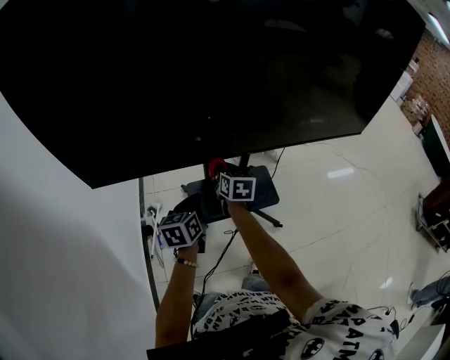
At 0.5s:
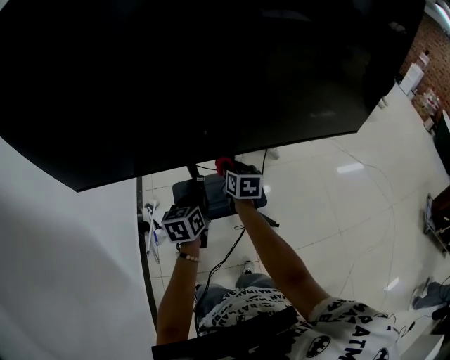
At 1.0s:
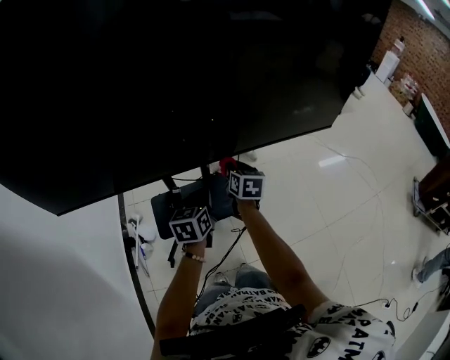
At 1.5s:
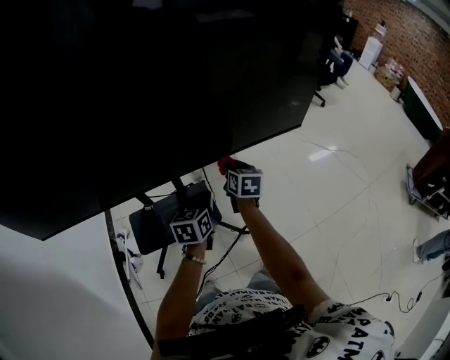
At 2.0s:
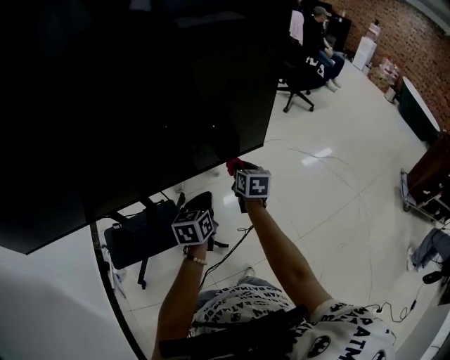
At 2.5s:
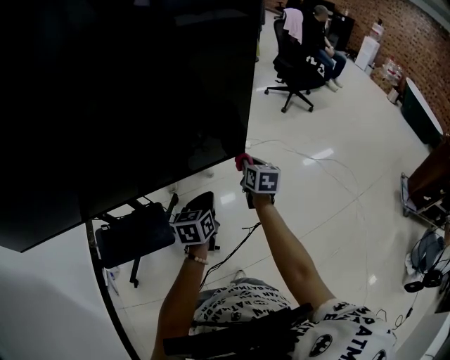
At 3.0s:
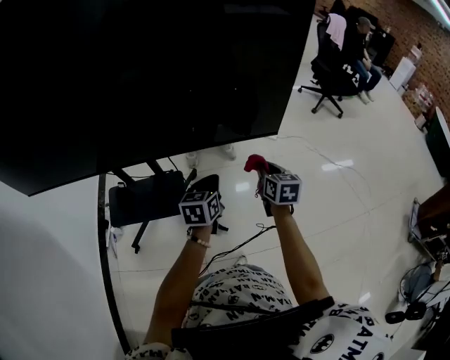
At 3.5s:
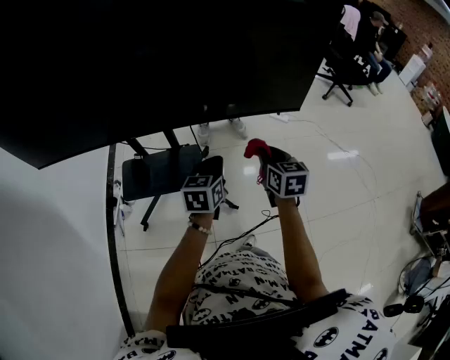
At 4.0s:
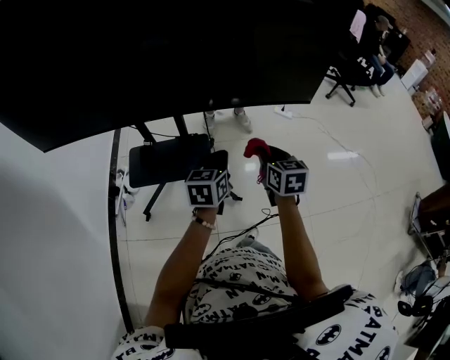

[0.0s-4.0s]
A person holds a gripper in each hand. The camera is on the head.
0.0s to 2.0s: Both grippers are carried to the right, approximately 50 cm.
2.0s to 4.0s: The right gripper heads backward, covering roughly 20 cm, and swivels roughly 20 degrees. The left gripper heads backward and to the left, covering some 15 cm.

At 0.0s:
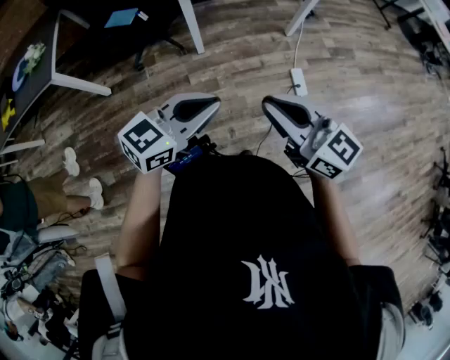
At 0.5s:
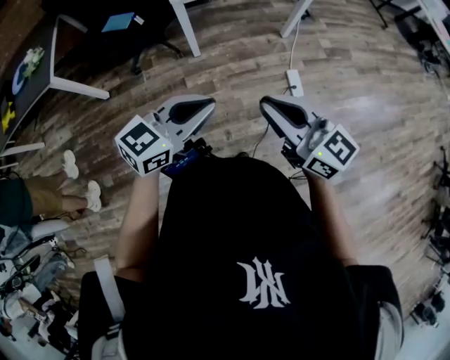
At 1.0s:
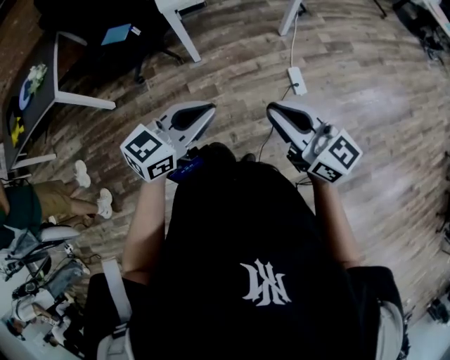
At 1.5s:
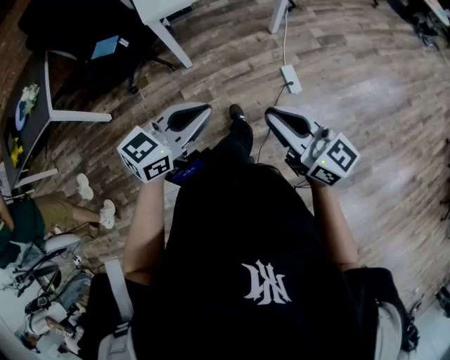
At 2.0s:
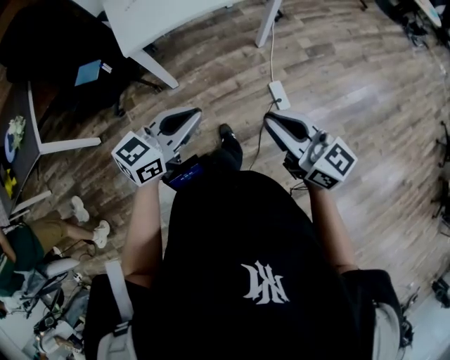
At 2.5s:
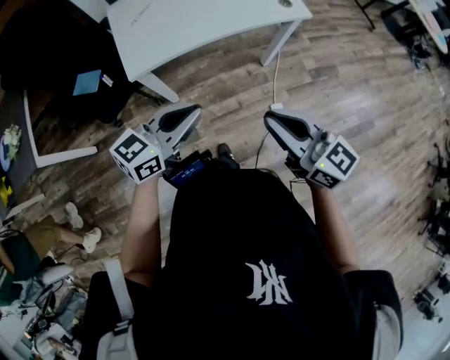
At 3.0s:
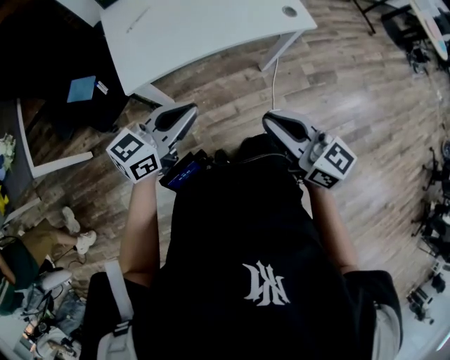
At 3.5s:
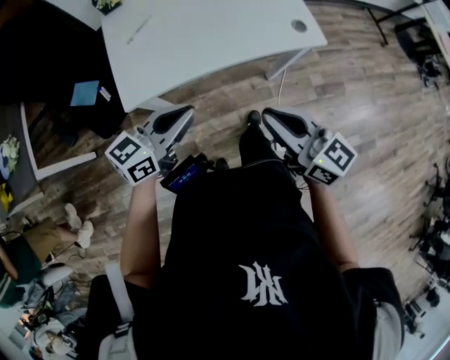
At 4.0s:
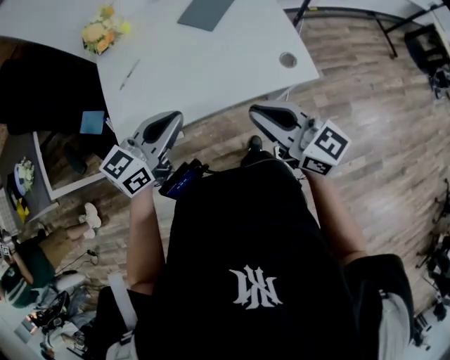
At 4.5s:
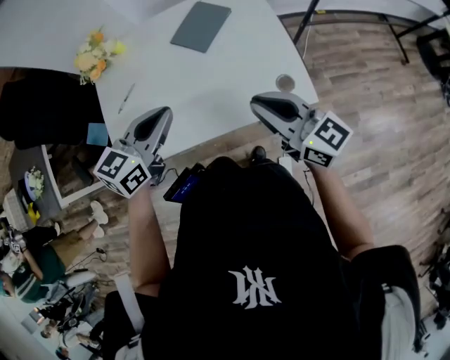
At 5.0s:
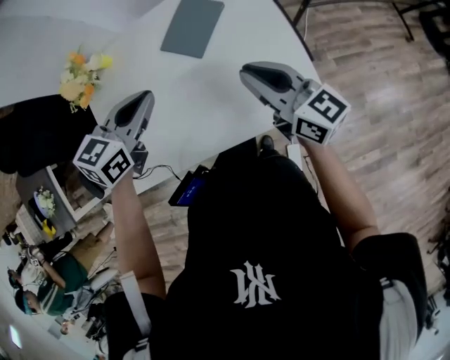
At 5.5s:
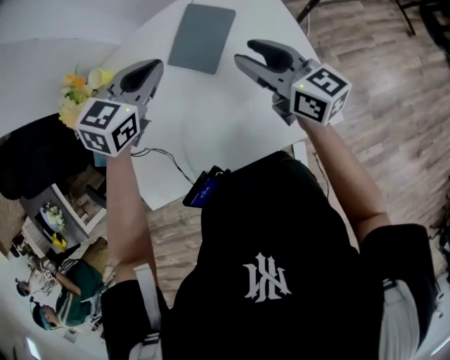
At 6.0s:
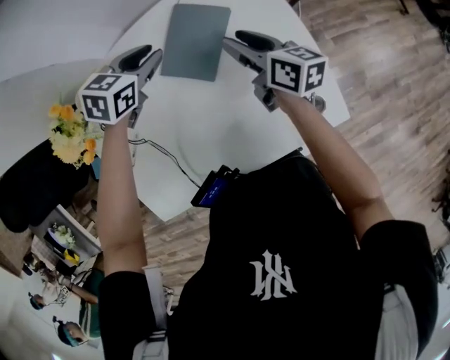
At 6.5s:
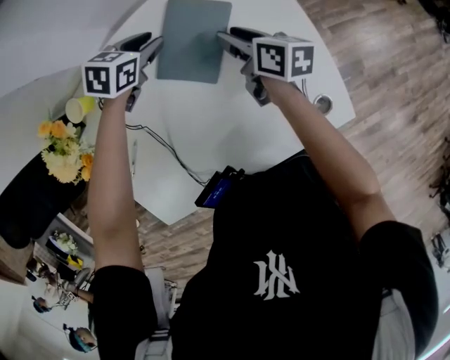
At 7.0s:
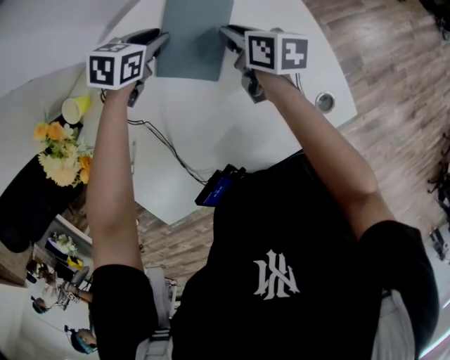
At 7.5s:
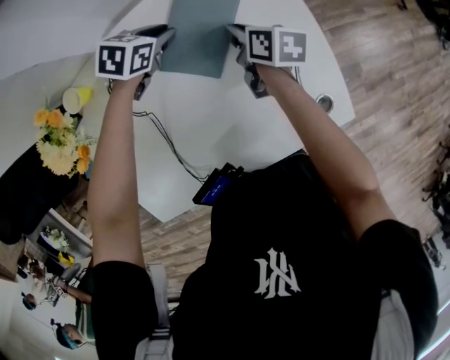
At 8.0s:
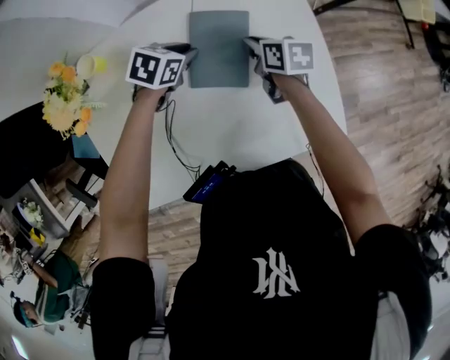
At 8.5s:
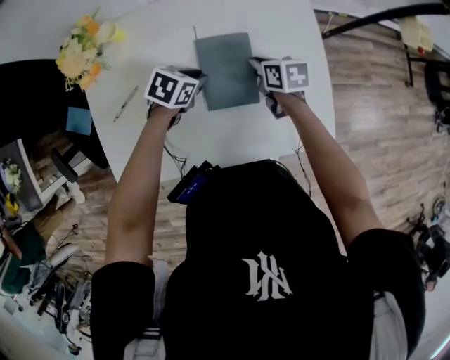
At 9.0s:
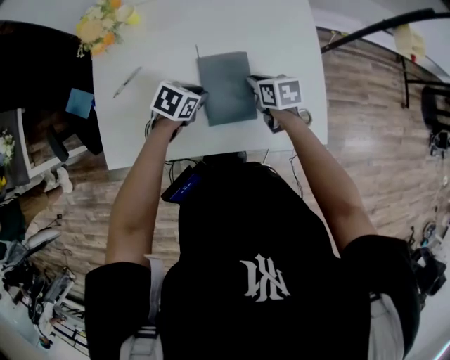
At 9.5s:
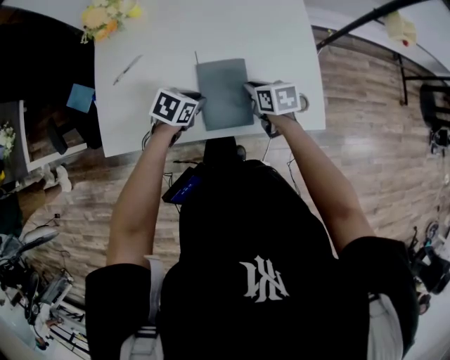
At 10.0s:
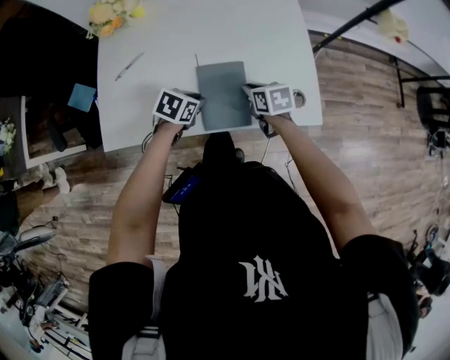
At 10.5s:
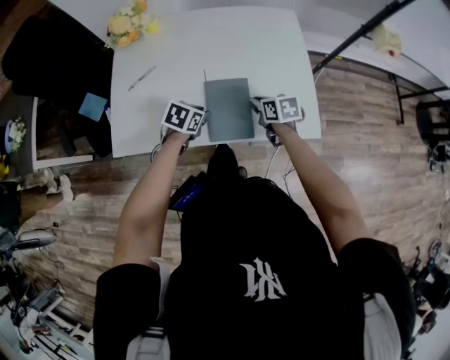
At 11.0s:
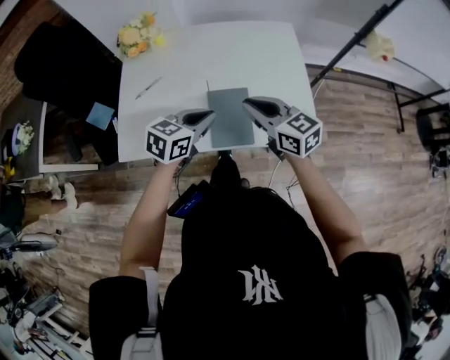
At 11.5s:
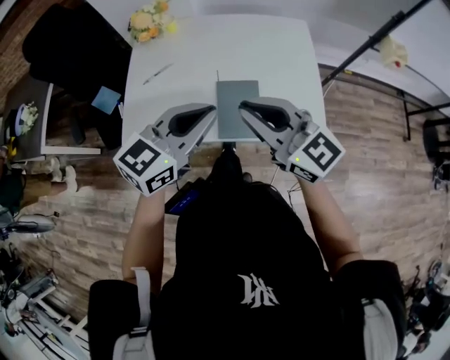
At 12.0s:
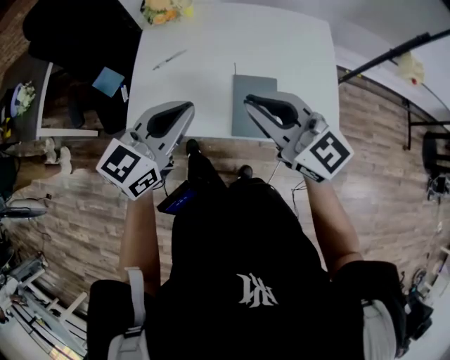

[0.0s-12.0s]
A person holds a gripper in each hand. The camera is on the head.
0.0s to 2.0s: Both grippers travel together forward and to the right, about 20 cm.
2.0s to 4.0s: The two grippers travel together, forward, roughly 50 cm.
4.0s to 6.0s: The two grippers travel together, forward, roughly 50 cm. The left gripper tilts its fingers approximately 30 degrees downward, and opens its fingers; the right gripper turns by roughly 40 degrees, and opens.
6.0s to 8.0s: Both grippers travel together downward, some 10 cm. The right gripper rotates about 30 degrees, and closes.
8.0s to 10.0s: Both grippers travel together backward, roughly 25 cm. The right gripper swivels approximately 20 degrees.
10.0s to 12.0s: Both grippers move upward, roughly 30 cm. The right gripper tilts its fingers approximately 50 degrees upward. Meanwhile the left gripper angles its fingers upward, by approximately 50 degrees.

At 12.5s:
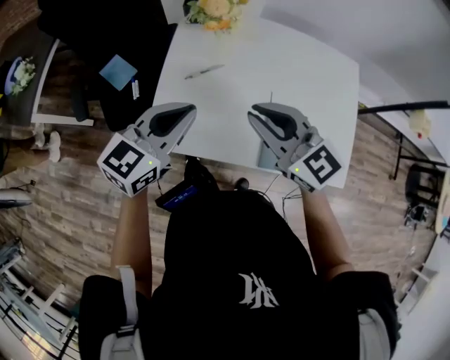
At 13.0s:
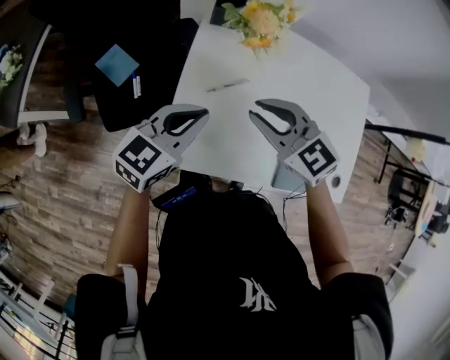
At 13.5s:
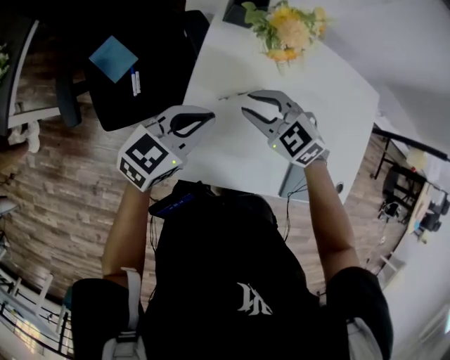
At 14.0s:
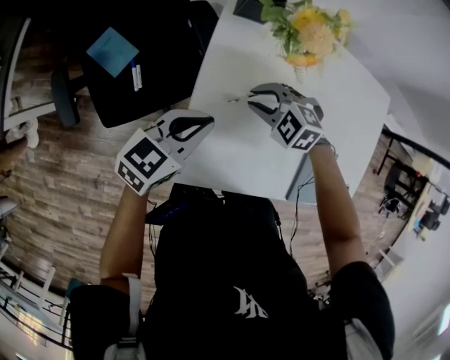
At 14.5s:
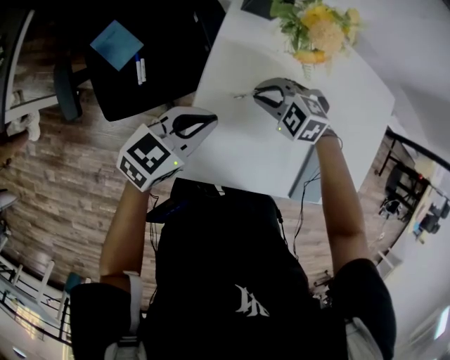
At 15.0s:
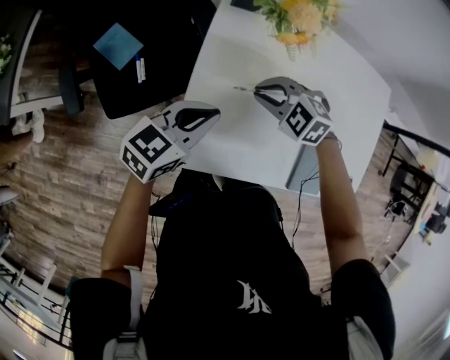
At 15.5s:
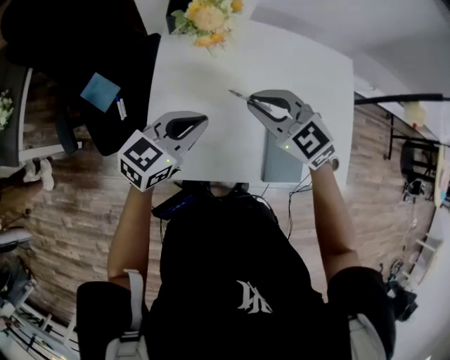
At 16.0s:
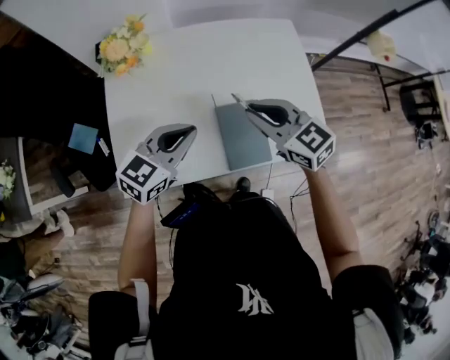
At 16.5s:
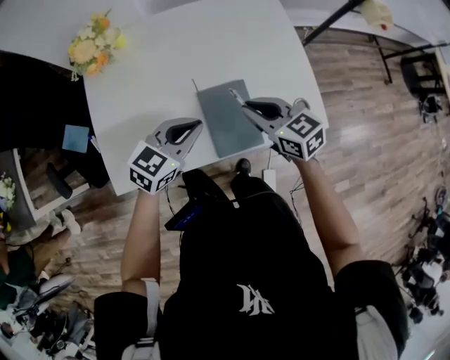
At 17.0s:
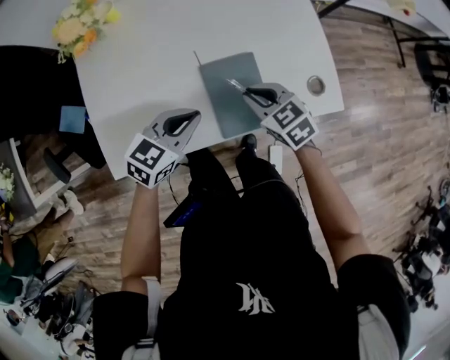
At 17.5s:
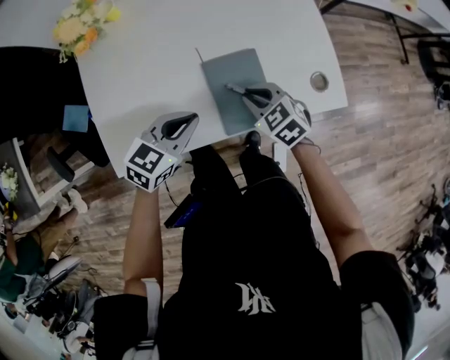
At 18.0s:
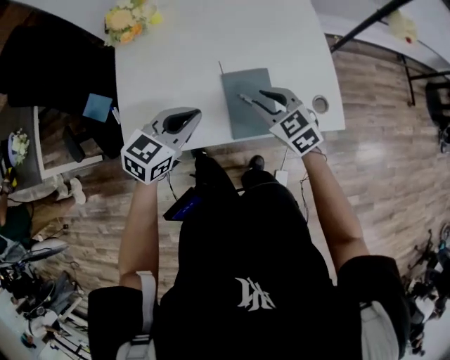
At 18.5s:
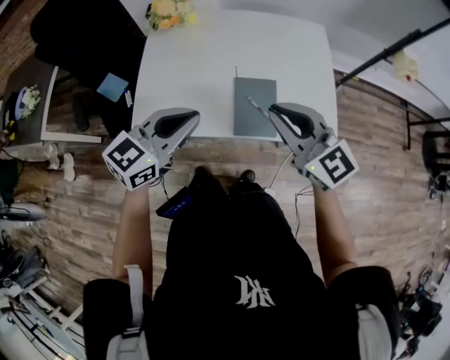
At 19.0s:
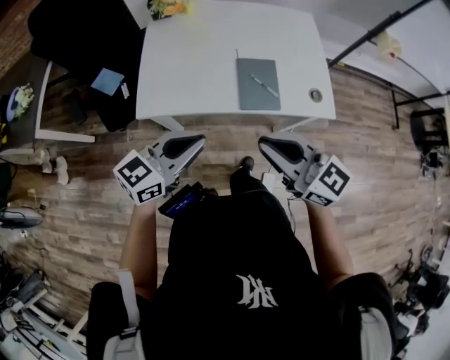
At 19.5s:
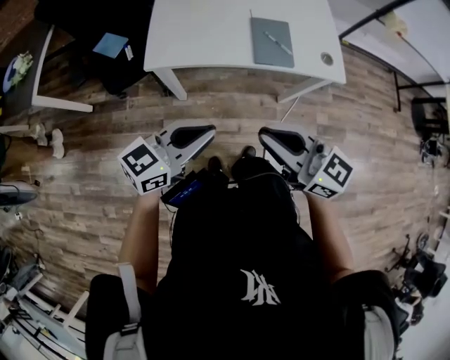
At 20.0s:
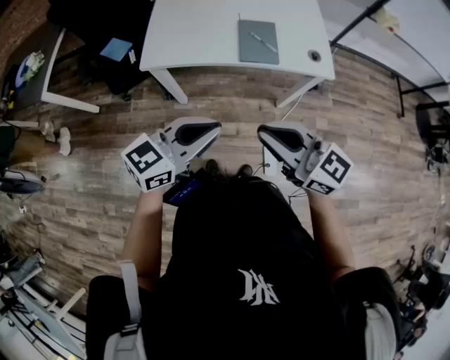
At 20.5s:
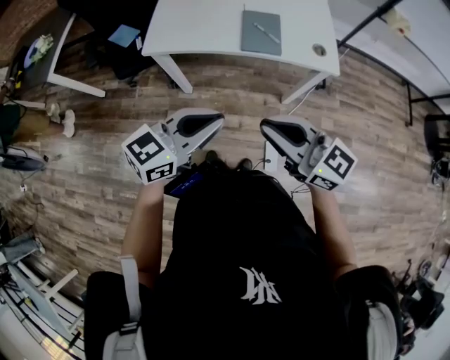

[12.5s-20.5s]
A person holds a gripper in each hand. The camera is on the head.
12.5s to 14.5s: The left gripper is displaced downward by approximately 15 cm. Meanwhile the right gripper travels downward by roughly 25 cm, and tilts its fingers some 50 degrees downward.
14.5s to 16.5s: The right gripper changes place by roughly 40 cm, and angles its fingers upward, by about 30 degrees. Meanwhile the left gripper goes upward and returns, some 10 cm each way, and turns by about 20 degrees.
16.5s to 18.5s: Both grippers move upward and backward, approximately 20 cm. The right gripper changes its angle by about 30 degrees.
18.5s to 20.5s: Both grippers travel together backward, some 30 cm. The right gripper changes its angle by about 20 degrees.

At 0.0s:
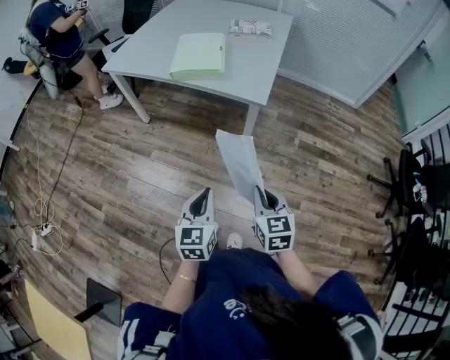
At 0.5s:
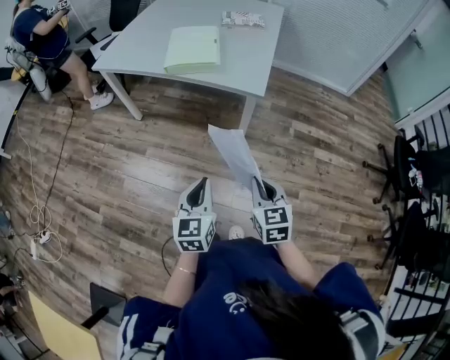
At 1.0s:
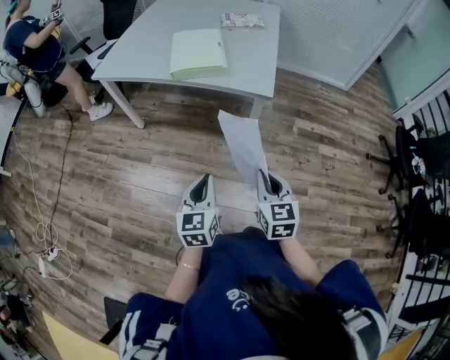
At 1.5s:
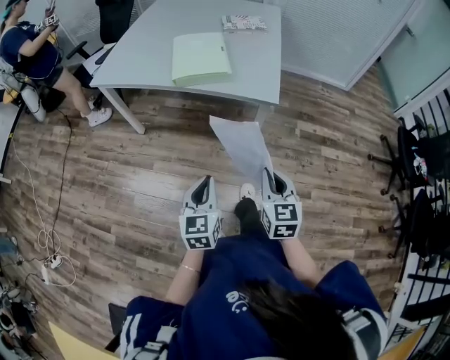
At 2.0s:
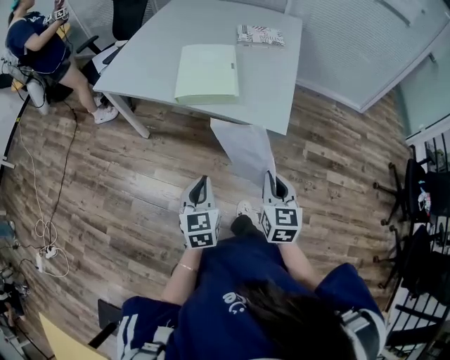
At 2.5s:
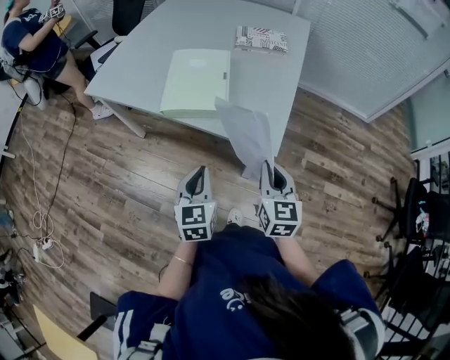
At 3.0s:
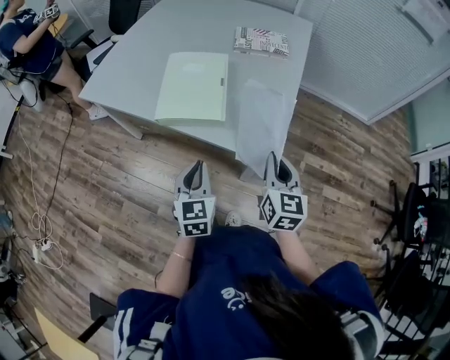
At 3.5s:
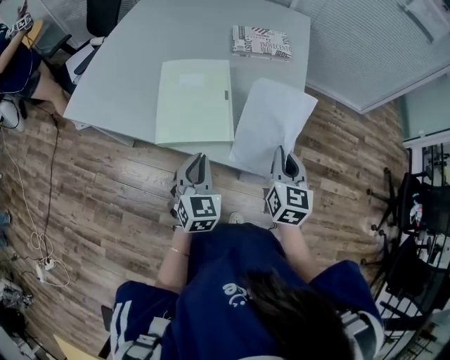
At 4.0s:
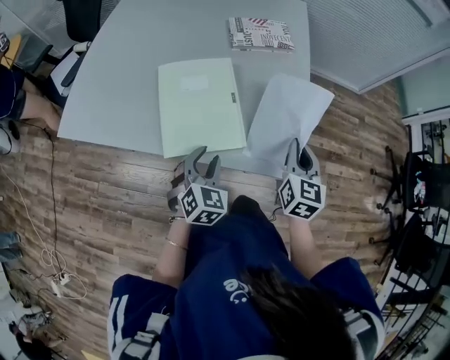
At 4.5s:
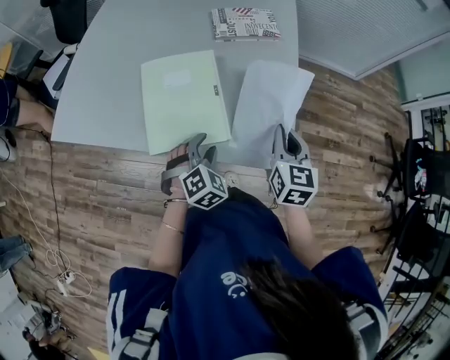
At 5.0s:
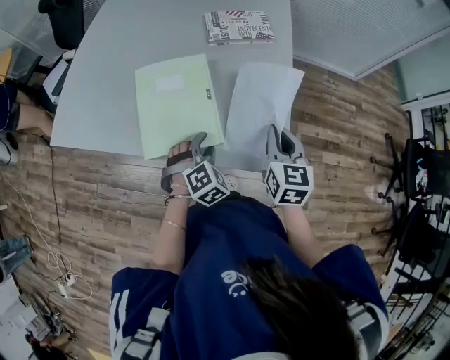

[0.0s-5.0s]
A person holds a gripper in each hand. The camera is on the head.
0.0s to 2.5s: The grippers both shift forward by some 35 cm.
2.5s to 5.0s: The grippers both shift forward by approximately 20 cm. The left gripper rotates around the line of its fingers by approximately 60 degrees, clockwise from behind, and opens its fingers.
